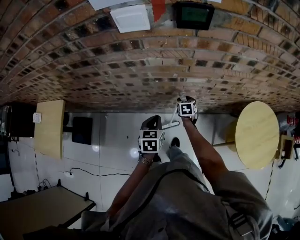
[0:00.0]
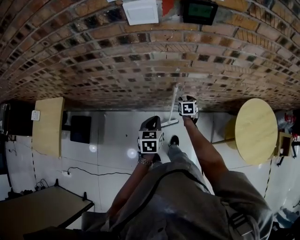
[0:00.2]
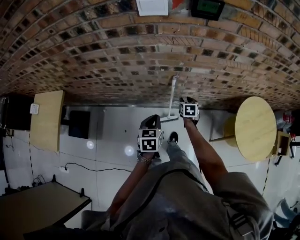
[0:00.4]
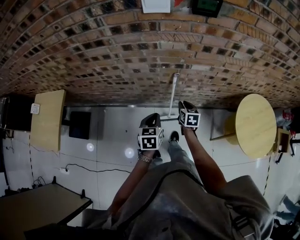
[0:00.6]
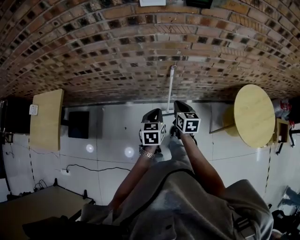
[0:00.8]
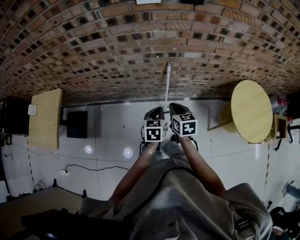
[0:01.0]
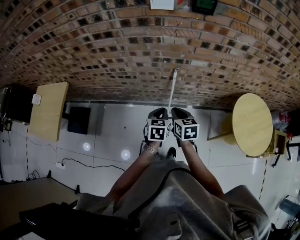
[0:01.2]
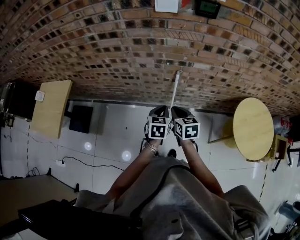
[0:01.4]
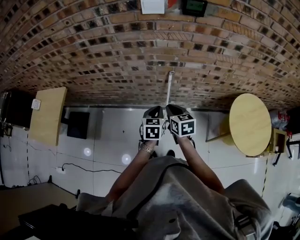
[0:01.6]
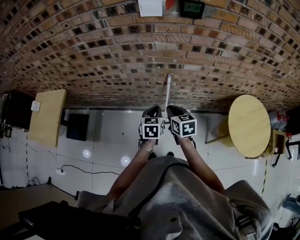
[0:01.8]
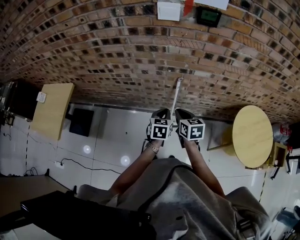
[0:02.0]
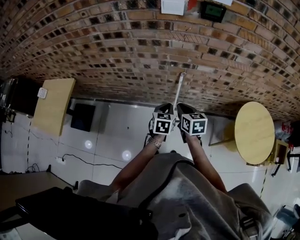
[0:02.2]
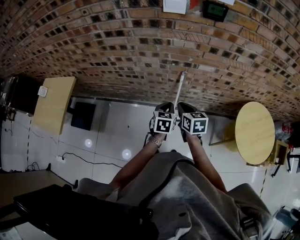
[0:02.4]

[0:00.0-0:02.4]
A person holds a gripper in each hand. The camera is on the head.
0:00.0 to 0:01.2: The left gripper is displaced backward by some 10 cm, while the right gripper travels backward, upward and to the left by about 35 cm, and closes up.
0:01.2 to 0:02.4: The grippers stay close to where they were, moving slightly.

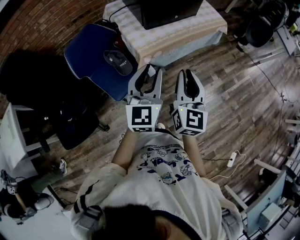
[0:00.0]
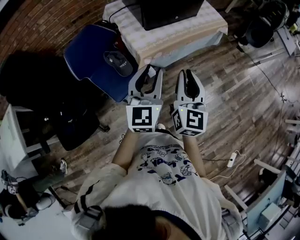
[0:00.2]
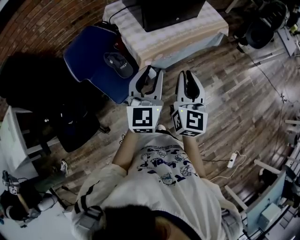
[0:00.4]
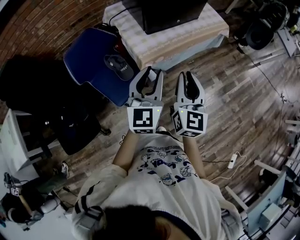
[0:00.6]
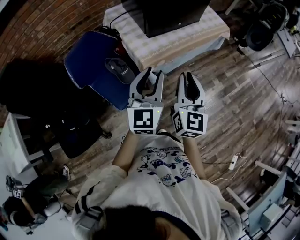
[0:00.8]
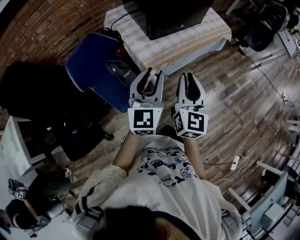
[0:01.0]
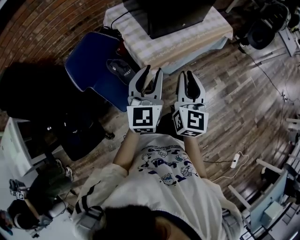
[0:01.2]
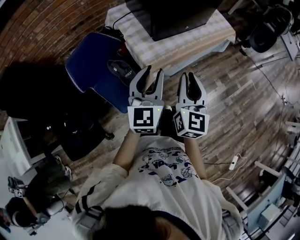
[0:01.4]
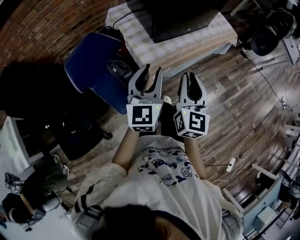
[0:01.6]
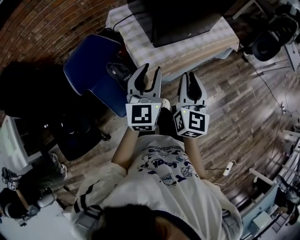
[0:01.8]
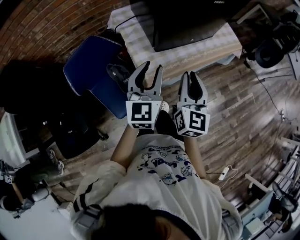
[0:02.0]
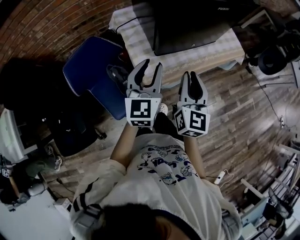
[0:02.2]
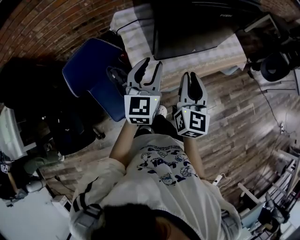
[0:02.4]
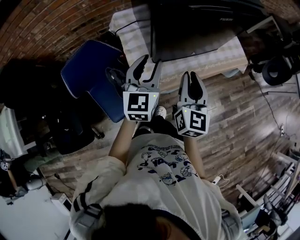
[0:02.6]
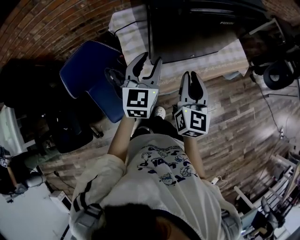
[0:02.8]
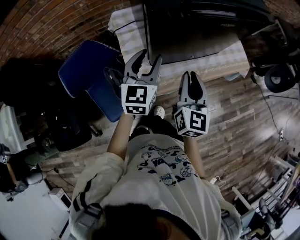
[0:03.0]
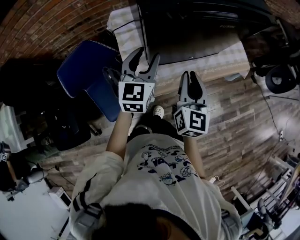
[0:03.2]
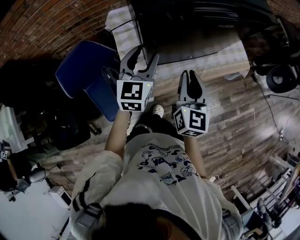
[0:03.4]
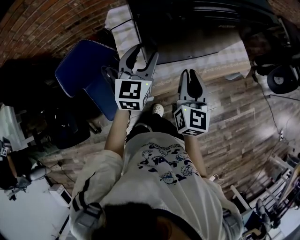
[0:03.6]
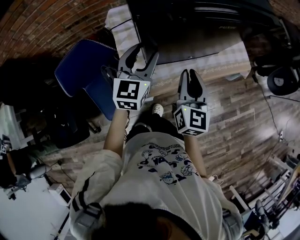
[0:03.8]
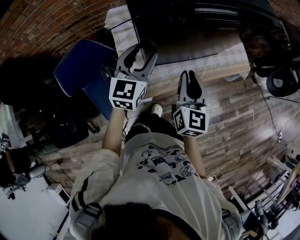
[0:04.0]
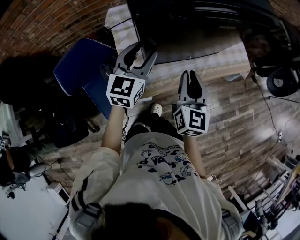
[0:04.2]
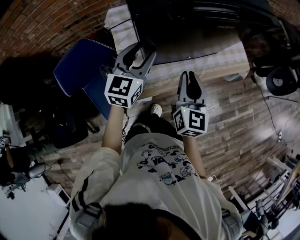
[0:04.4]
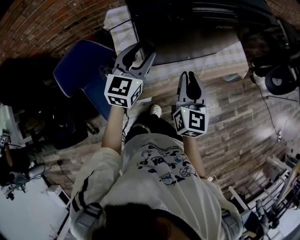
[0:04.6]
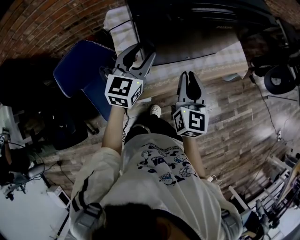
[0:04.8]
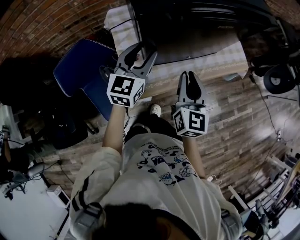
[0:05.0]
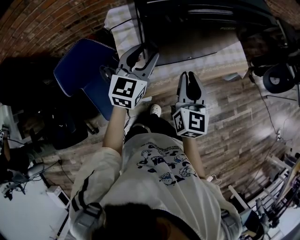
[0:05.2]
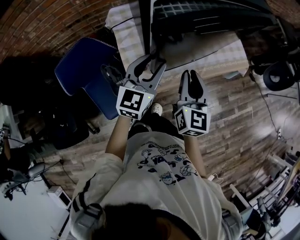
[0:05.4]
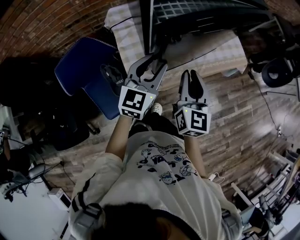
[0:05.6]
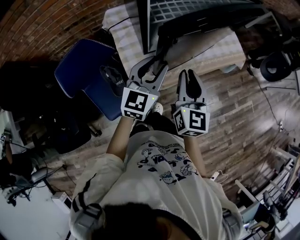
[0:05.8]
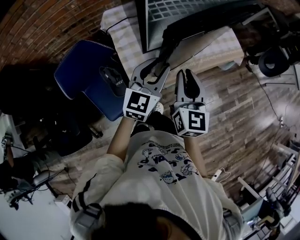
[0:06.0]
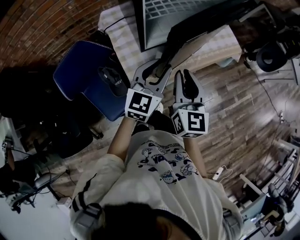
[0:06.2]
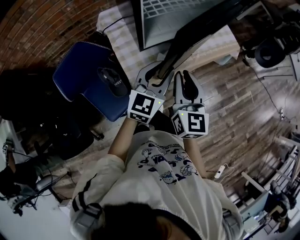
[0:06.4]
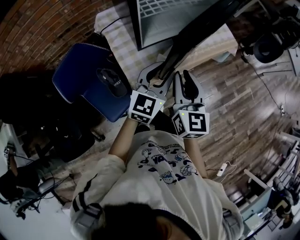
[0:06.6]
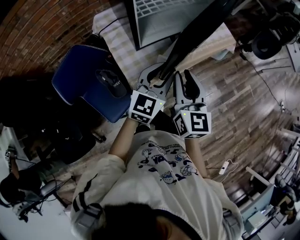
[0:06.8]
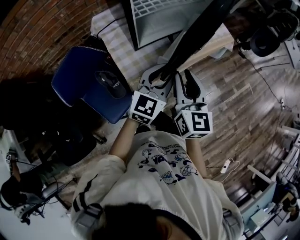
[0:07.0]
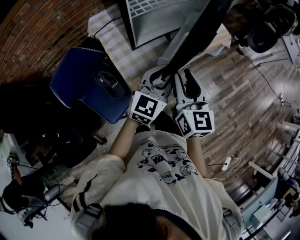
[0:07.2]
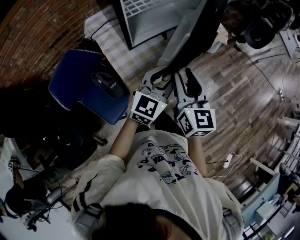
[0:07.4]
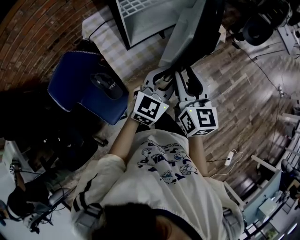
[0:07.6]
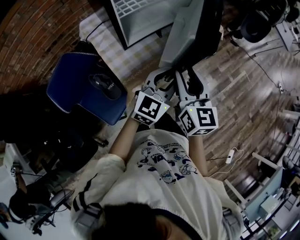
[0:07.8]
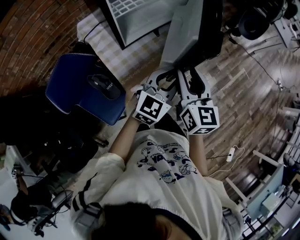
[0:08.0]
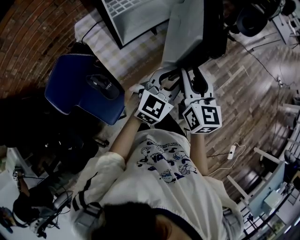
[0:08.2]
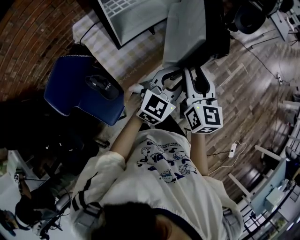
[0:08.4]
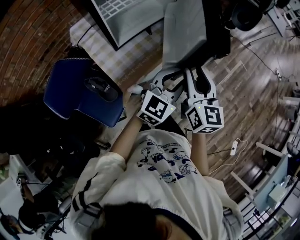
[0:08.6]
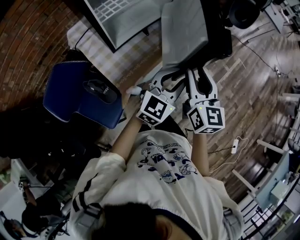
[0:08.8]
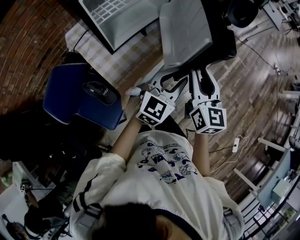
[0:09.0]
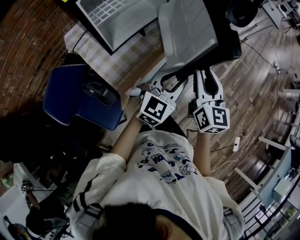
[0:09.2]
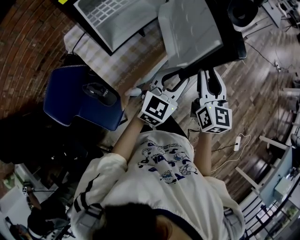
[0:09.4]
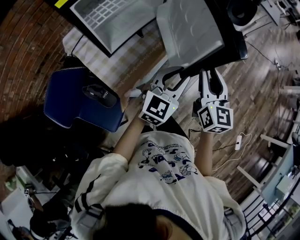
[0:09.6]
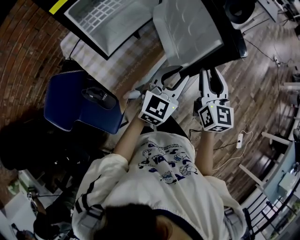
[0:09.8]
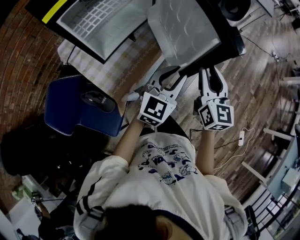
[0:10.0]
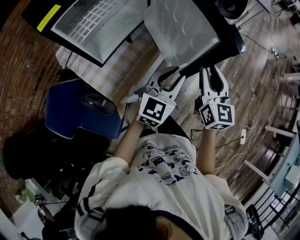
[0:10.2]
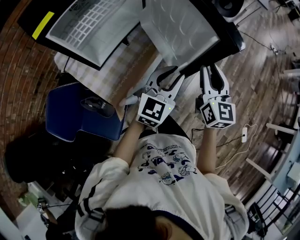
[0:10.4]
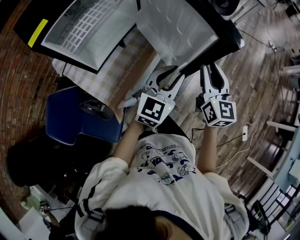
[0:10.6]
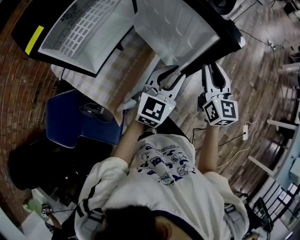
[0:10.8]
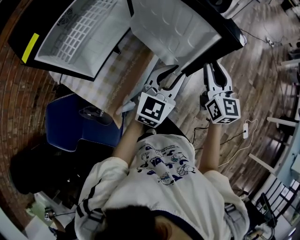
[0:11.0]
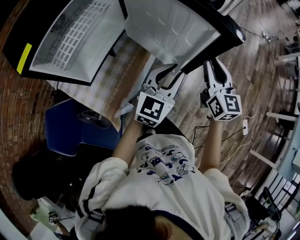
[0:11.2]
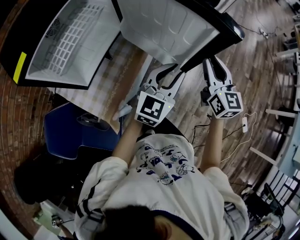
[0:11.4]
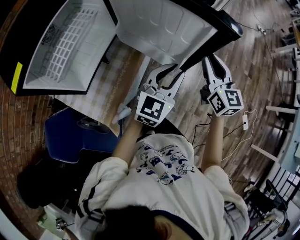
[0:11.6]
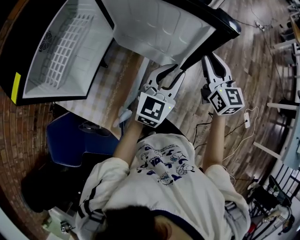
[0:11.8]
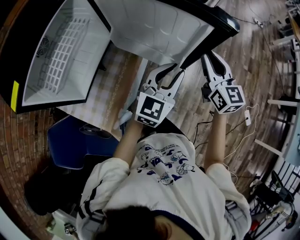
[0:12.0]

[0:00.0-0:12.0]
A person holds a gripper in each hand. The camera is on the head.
0:00.0 to 0:01.6: The grippers both shift forward and to the left by roughly 15 cm.
0:01.6 to 0:03.0: The two grippers go about 20 cm forward.
0:03.0 to 0:04.4: The grippers make only small movements.
0:04.4 to 0:06.0: The right gripper heads backward, covering roughly 5 cm. Meanwhile the left gripper heads backward and to the right, covering approximately 10 cm.
0:06.0 to 0:07.6: The left gripper is displaced to the right and backward by roughly 15 cm, and rotates approximately 20 degrees. The right gripper is displaced backward by roughly 5 cm, and opens.
0:07.6 to 0:09.0: Both grippers move to the right, roughly 10 cm.
0:09.0 to 0:10.4: The left gripper ends up approximately 5 cm from where it was. The right gripper goes some 10 cm to the right and forward.
0:10.4 to 0:12.0: The grippers both shift forward and to the right by approximately 15 cm.

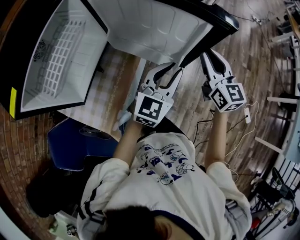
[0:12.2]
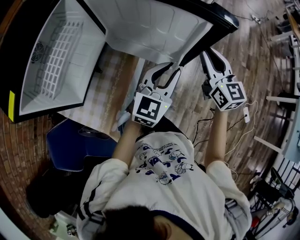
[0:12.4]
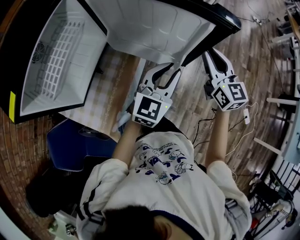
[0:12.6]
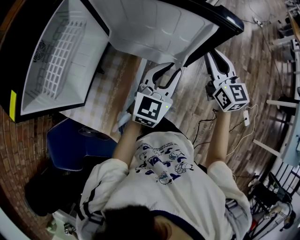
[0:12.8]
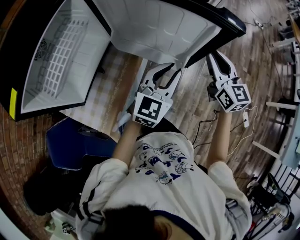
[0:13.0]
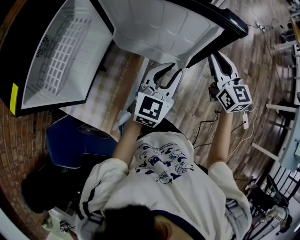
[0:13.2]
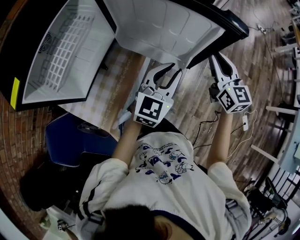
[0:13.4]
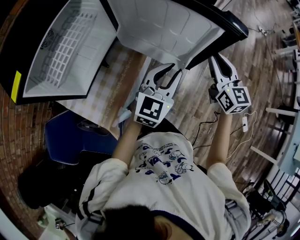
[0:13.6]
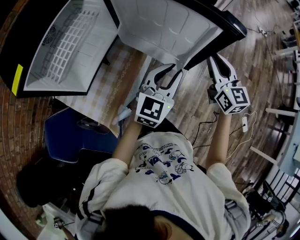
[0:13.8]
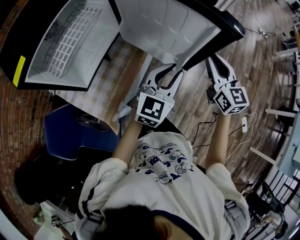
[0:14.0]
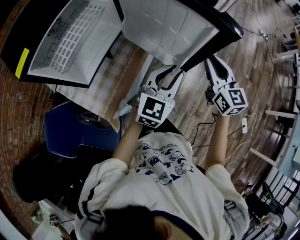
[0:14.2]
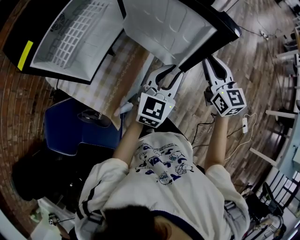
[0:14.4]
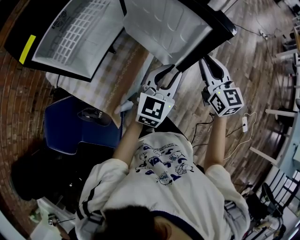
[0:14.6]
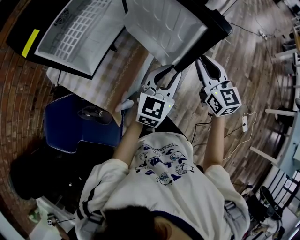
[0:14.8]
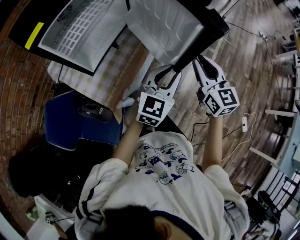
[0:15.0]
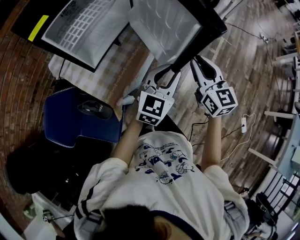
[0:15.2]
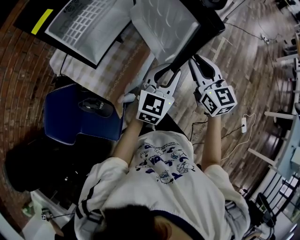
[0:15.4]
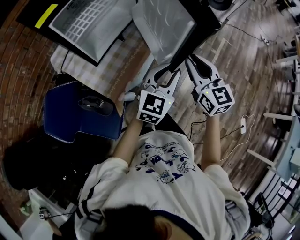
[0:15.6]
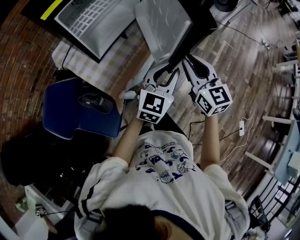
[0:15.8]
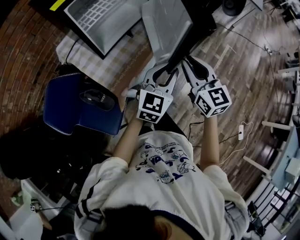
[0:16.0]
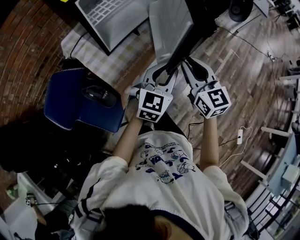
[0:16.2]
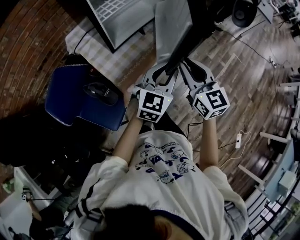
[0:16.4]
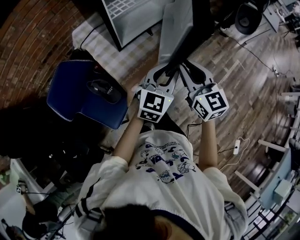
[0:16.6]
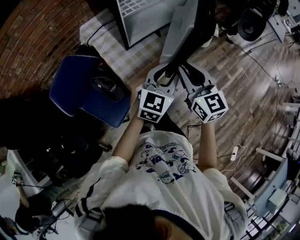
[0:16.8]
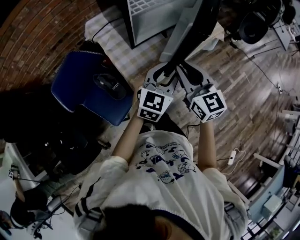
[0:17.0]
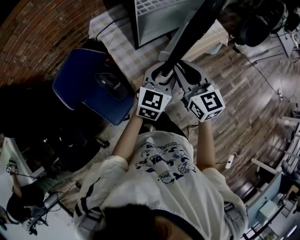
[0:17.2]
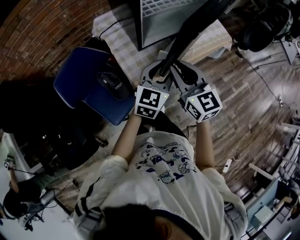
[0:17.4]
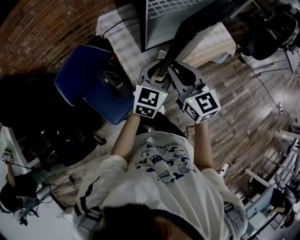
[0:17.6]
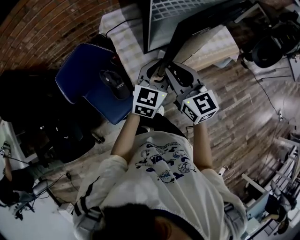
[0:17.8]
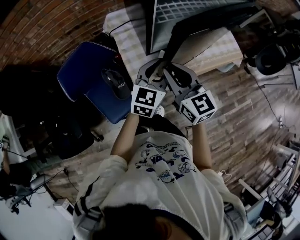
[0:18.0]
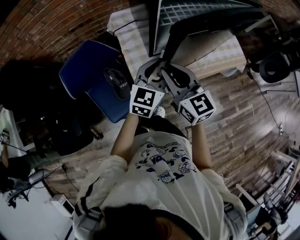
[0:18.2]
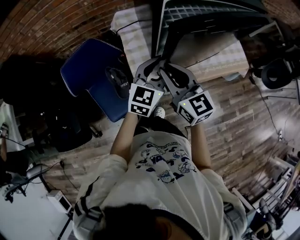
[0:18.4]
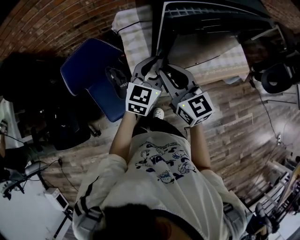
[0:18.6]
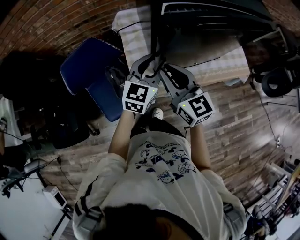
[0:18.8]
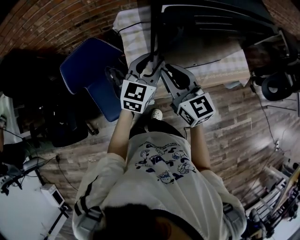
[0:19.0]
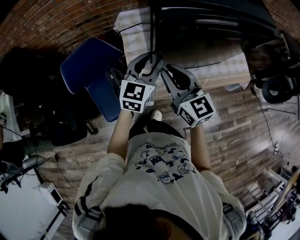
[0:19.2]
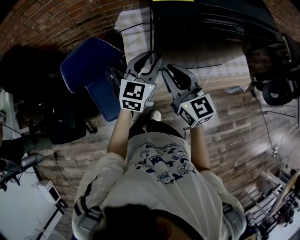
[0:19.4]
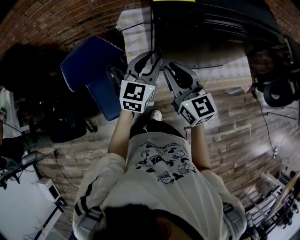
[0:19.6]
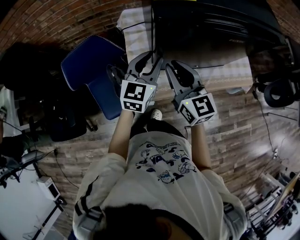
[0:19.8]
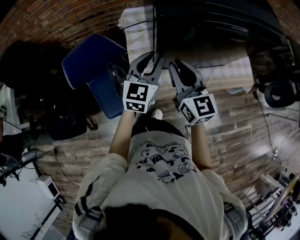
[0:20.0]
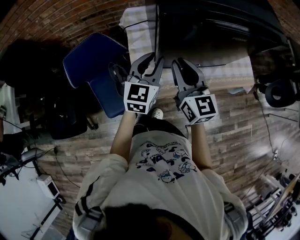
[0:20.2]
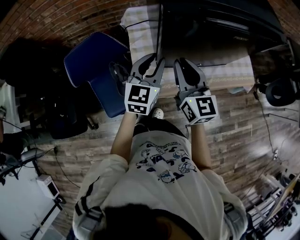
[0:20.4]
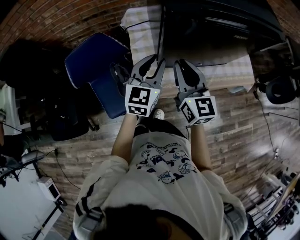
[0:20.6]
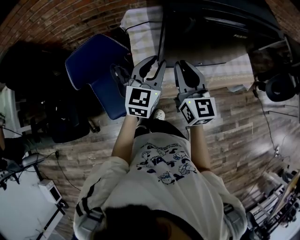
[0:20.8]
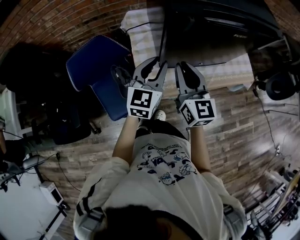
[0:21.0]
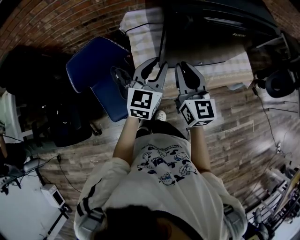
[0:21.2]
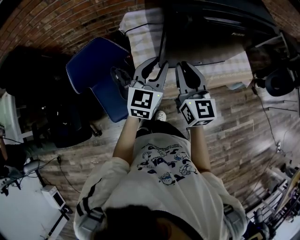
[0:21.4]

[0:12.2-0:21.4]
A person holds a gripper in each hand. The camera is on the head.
0:12.2 to 0:13.8: The grippers make only small movements.
0:13.8 to 0:15.2: The left gripper travels backward by some 10 cm, while the right gripper shifts some 15 cm backward and to the left.
0:15.2 to 0:16.8: Both grippers move to the left, roughly 20 cm. The right gripper changes its angle by roughly 30 degrees, while the left gripper swivels approximately 20 degrees.
0:16.8 to 0:18.4: The left gripper moves some 15 cm, and changes its angle by roughly 20 degrees. The right gripper moves roughly 15 cm, and turns by about 30 degrees.
0:18.4 to 0:19.8: The grippers both shift forward by roughly 5 cm.
0:19.8 to 0:21.4: The left gripper heads backward, covering some 5 cm.
